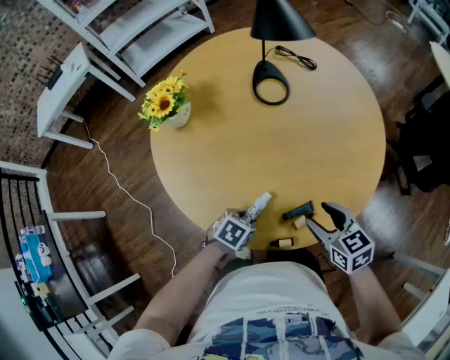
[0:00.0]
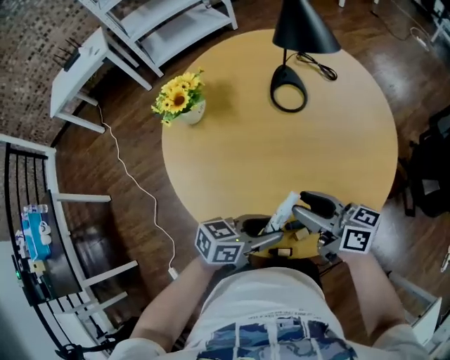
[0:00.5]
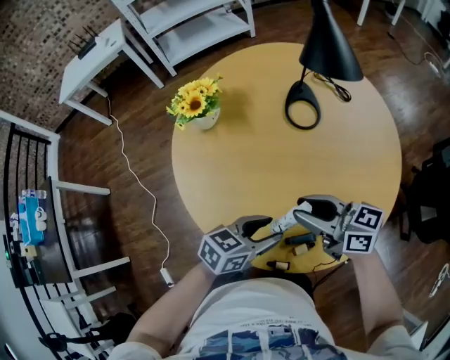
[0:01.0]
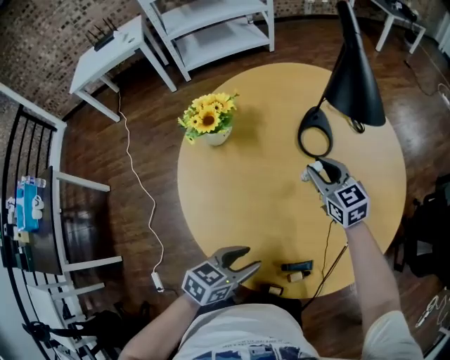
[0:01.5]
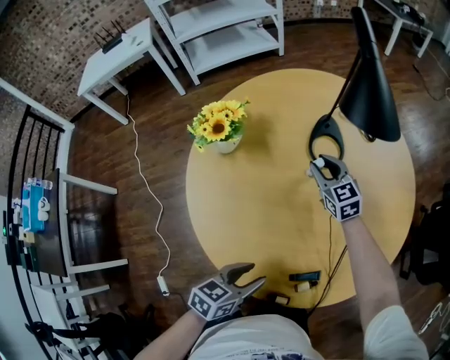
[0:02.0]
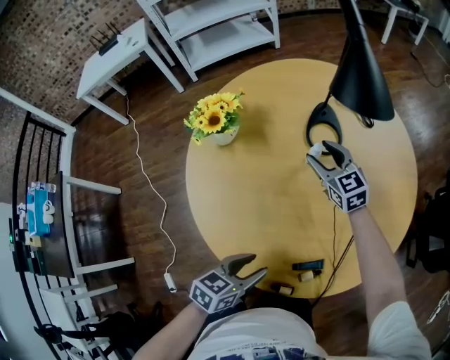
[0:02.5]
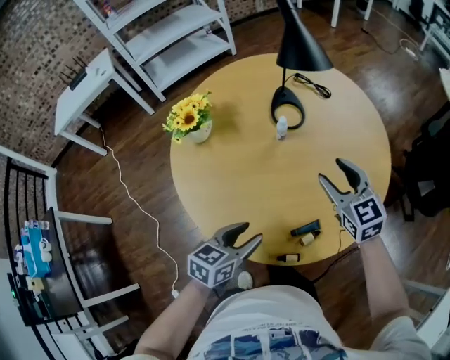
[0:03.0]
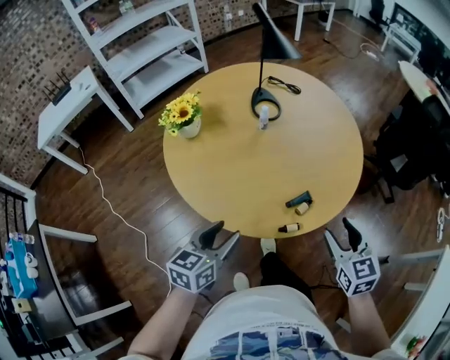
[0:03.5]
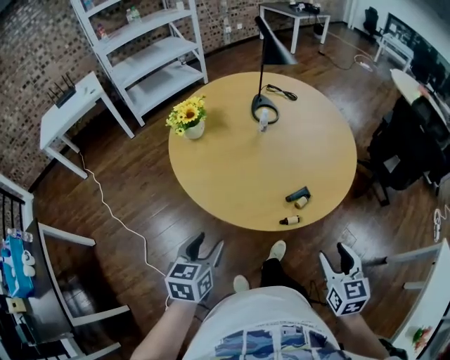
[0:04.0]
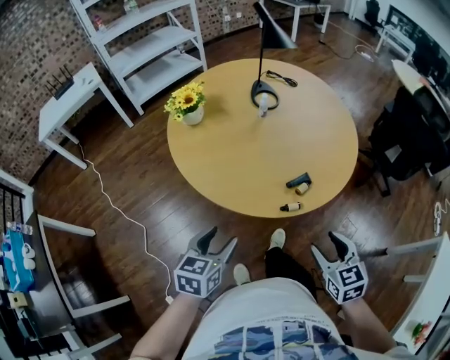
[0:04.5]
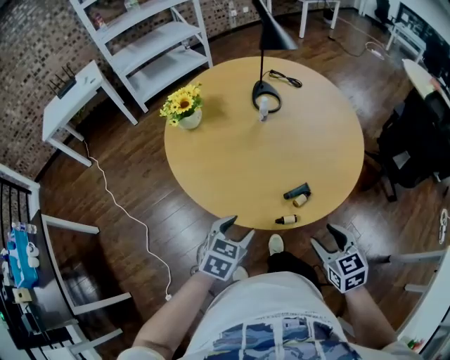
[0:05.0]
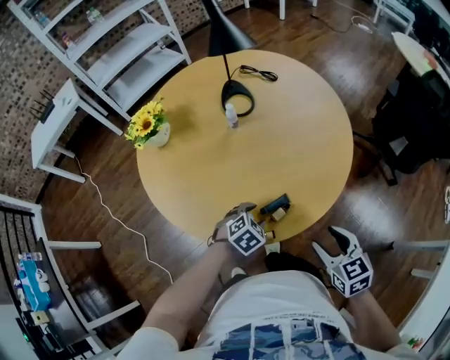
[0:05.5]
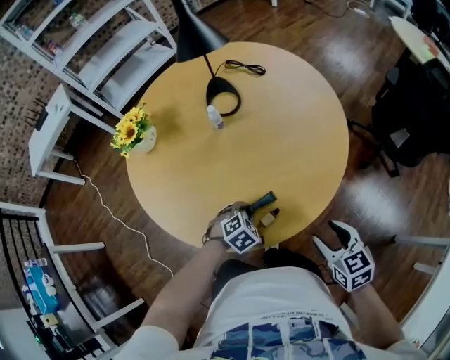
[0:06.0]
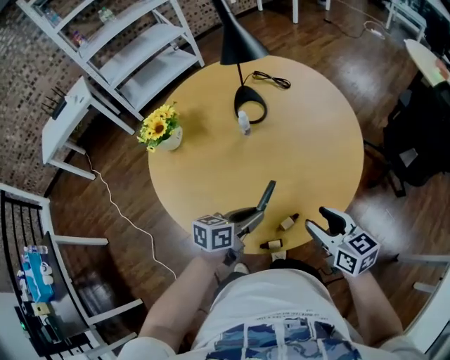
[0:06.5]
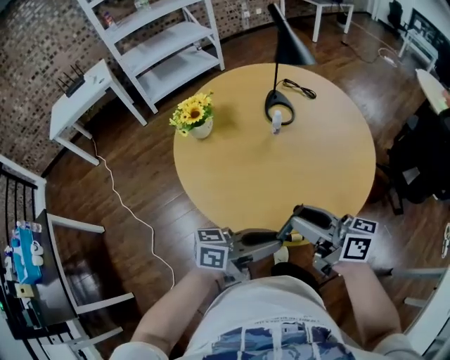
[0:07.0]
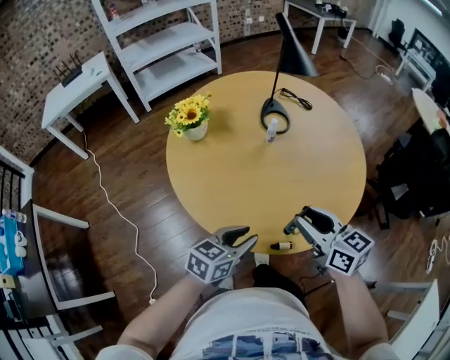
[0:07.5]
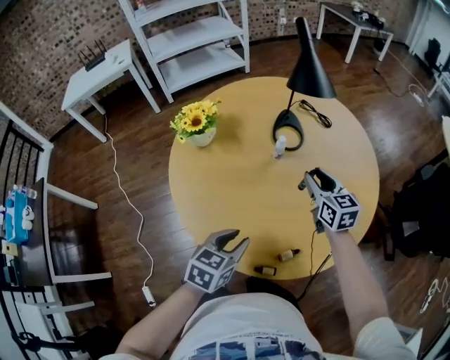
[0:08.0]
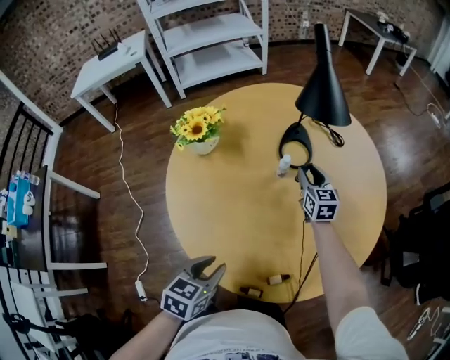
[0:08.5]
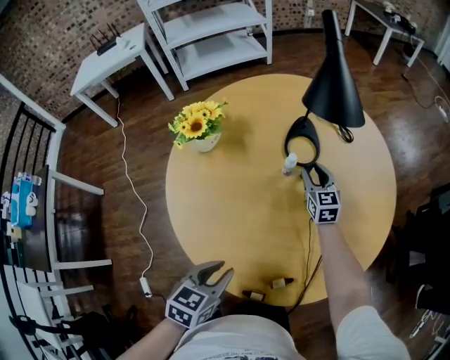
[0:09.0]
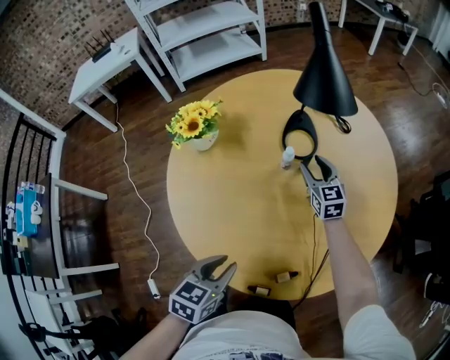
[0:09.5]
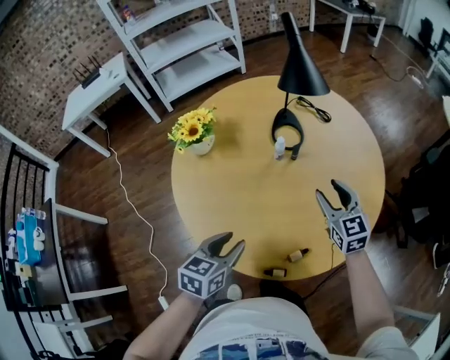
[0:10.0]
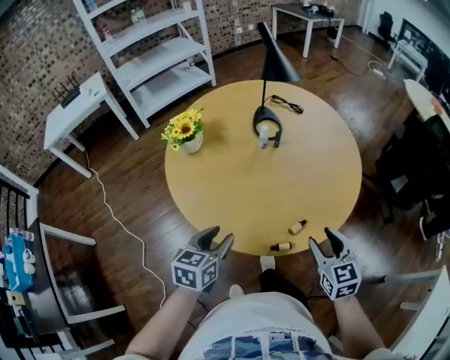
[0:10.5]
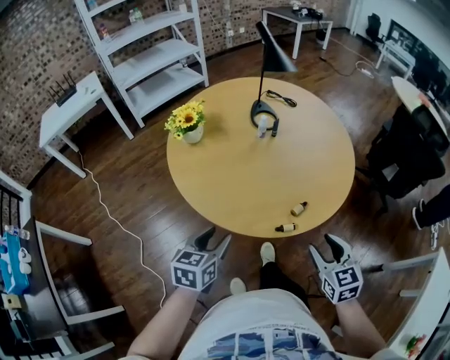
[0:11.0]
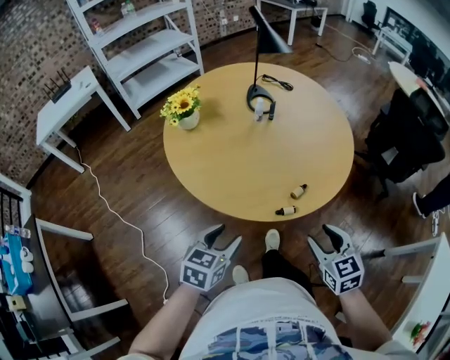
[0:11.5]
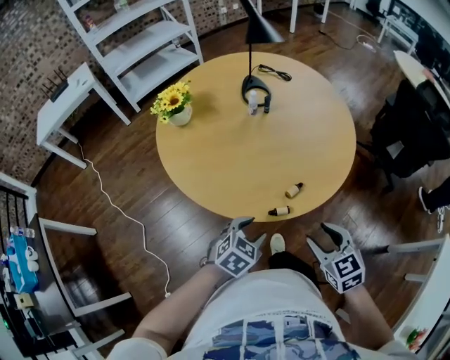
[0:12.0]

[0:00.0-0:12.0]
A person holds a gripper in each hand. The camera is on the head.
0:00.0 to 0:02.0: The left gripper moves upward, roughly 15 cm, and points its fingers about 30 degrees further upward. Meanwhile the right gripper travels upward and back again, roughly 10 cm each way, swivels approximately 30 degrees, and closes up.
0:02.0 to 0:04.0: The left gripper heads backward and to the left, covering approximately 30 cm, and changes its angle by some 20 degrees, while the right gripper heads backward, covering roughly 60 cm, swivels about 40 degrees, and opens.
0:04.0 to 0:06.0: The right gripper travels forward, to the right and downward by approximately 30 cm, and turns by approximately 20 degrees, while the left gripper moves to the right, forward and downward, approximately 40 cm, rolls clockwise, seen from behind, by roughly 50 degrees, and closes.
0:06.0 to 0:08.0: The right gripper ends up some 35 cm from where it was, rotates some 20 degrees, and closes up. Meanwhile the left gripper travels upward by approximately 20 cm, and twists approximately 50 degrees counterclockwise, seen from behind.
0:08.0 to 0:10.0: The right gripper reaches approximately 15 cm forward, then returns, and opens its fingers.
0:10.0 to 0:12.0: The right gripper moves backward, roughly 40 cm. The left gripper travels backward and to the right by roughly 20 cm, and swivels about 40 degrees.

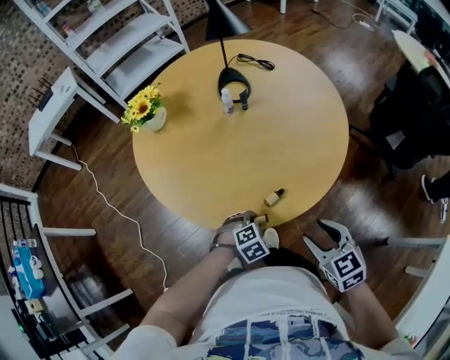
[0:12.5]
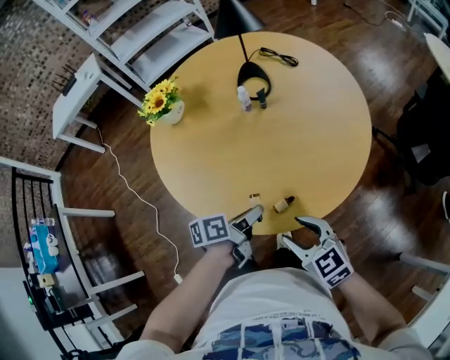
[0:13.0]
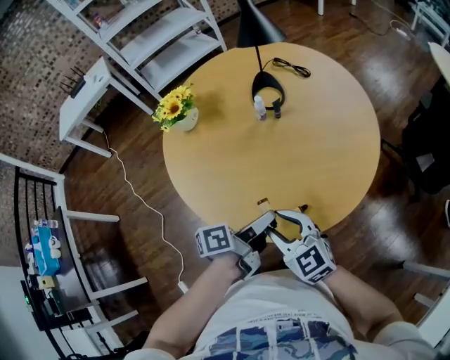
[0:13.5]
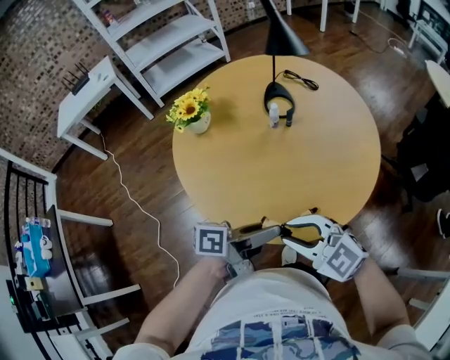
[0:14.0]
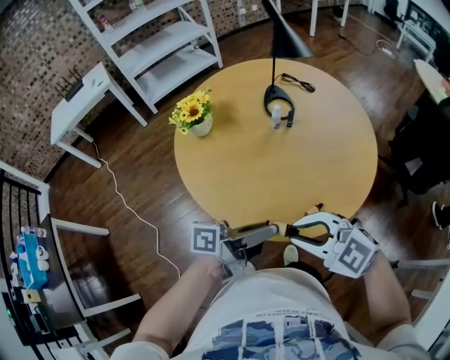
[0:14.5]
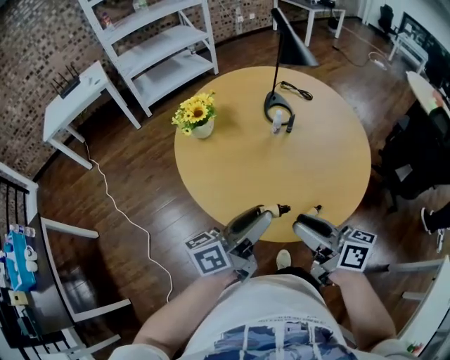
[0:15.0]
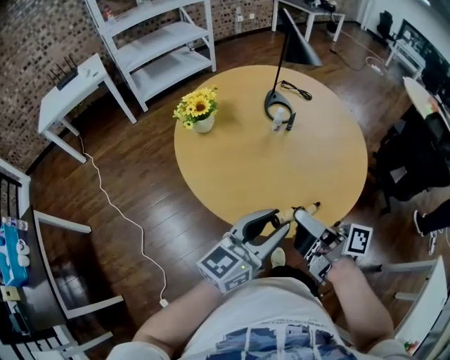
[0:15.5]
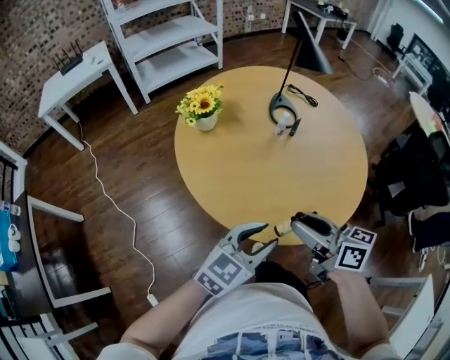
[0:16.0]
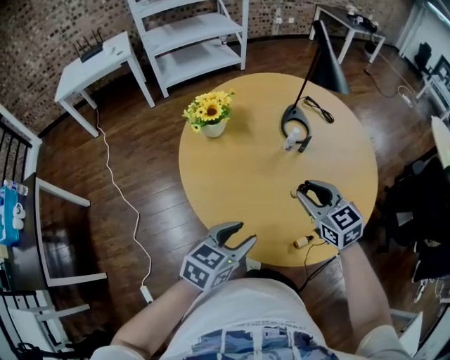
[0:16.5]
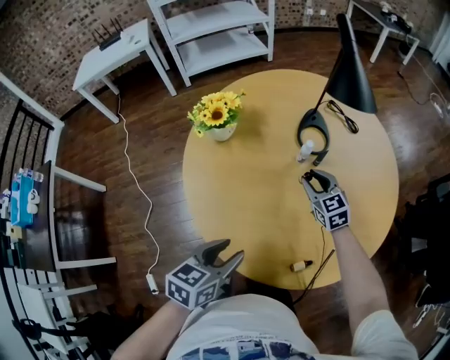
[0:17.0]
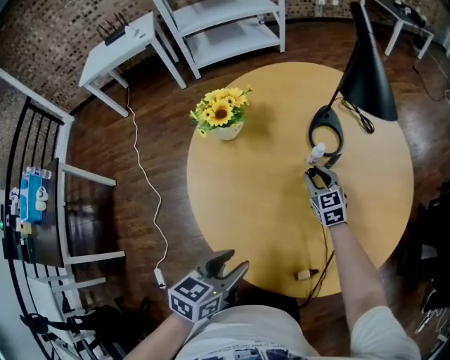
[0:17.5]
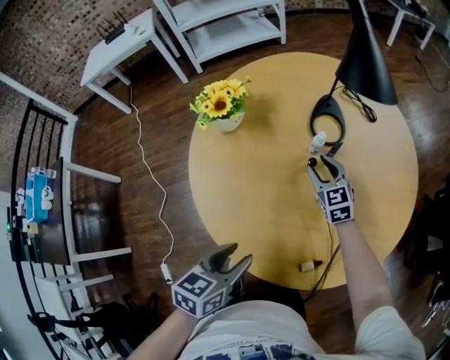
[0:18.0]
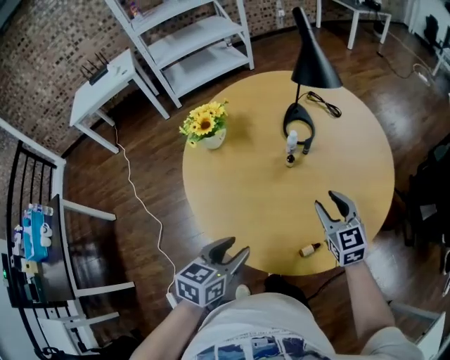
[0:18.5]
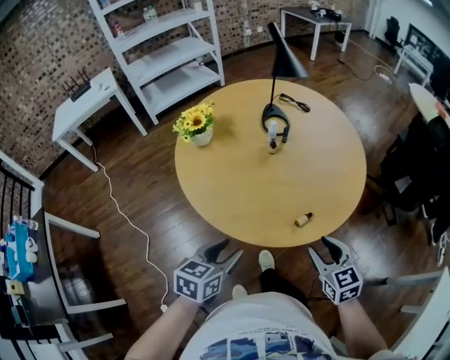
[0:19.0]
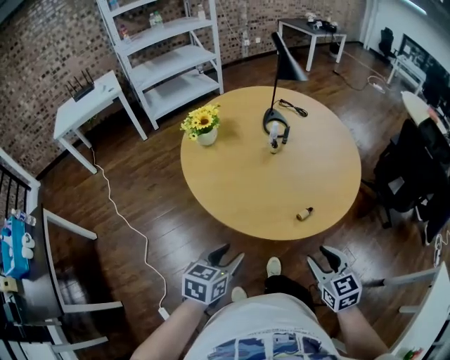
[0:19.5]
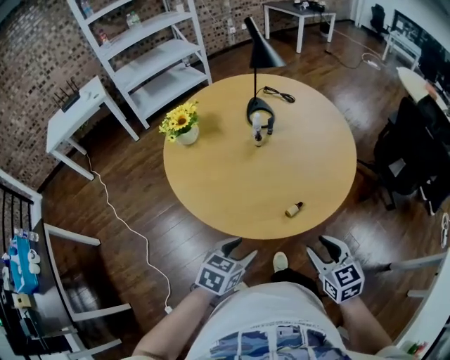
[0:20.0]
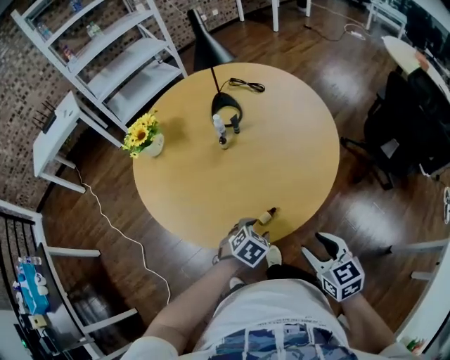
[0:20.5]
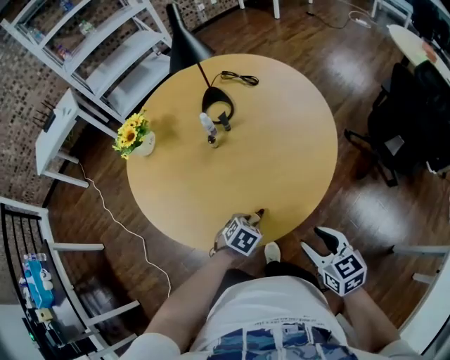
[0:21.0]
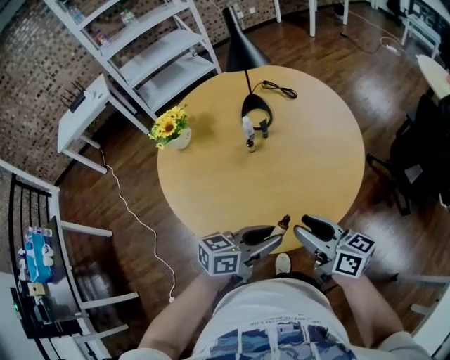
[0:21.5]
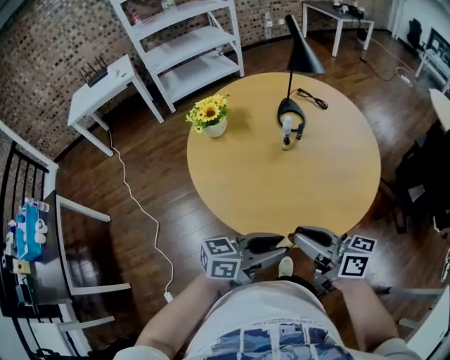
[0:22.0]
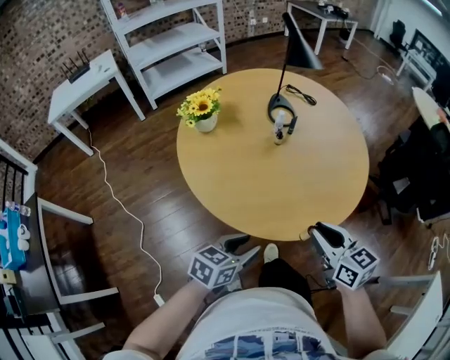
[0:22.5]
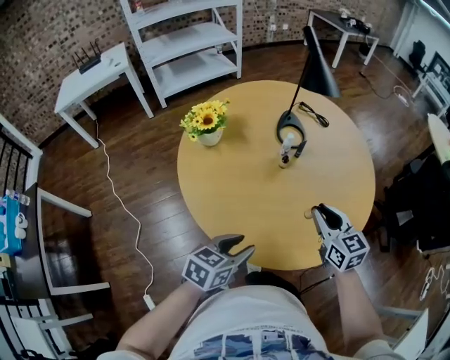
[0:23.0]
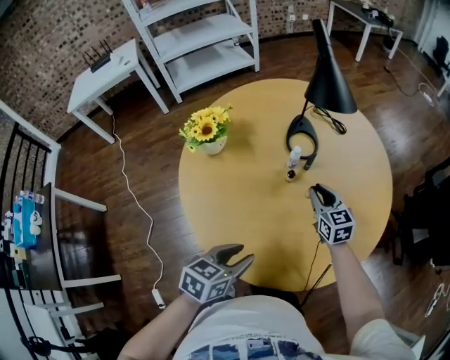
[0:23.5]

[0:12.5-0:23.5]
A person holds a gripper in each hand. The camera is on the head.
0:12.5 to 0:14.5: The left gripper heads upward, covering some 25 cm, and points its fingers some 80 degrees further upward; the right gripper shifts by about 25 cm, swivels about 50 degrees, and closes up.
0:14.5 to 0:16.0: The left gripper ends up some 5 cm from where it was, and rolls clockwise, seen from behind, by some 60 degrees, while the right gripper twists roughly 60 degrees clockwise, seen from behind.
0:16.0 to 0:18.0: The left gripper is displaced forward and downward by approximately 15 cm, and rotates some 50 degrees; the right gripper travels forward and downward by approximately 40 cm, and twists about 40 degrees counterclockwise, seen from behind.
0:18.0 to 0:20.0: The right gripper heads backward, covering roughly 50 cm, and swivels roughly 20 degrees. The left gripper travels backward by about 20 cm, and turns by roughly 30 degrees.
0:20.0 to 0:21.5: The right gripper heads forward, covering roughly 15 cm, travels to the right and back again, some 15 cm each way, and turns by roughly 40 degrees. The left gripper goes some 25 cm to the right and forward, reaches about 15 cm downward, then returns, changes its angle by roughly 30 degrees, and closes.
0:21.5 to 0:23.5: The right gripper shifts by roughly 35 cm, changes its angle by approximately 40 degrees, and closes its fingers. The left gripper shifts by about 25 cm, and swivels roughly 30 degrees.

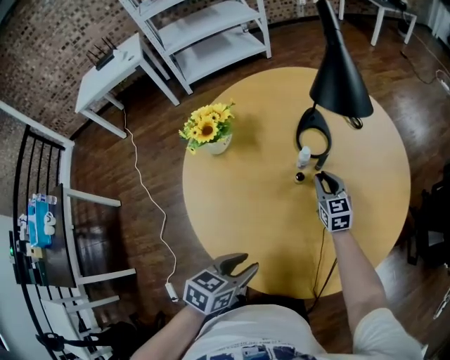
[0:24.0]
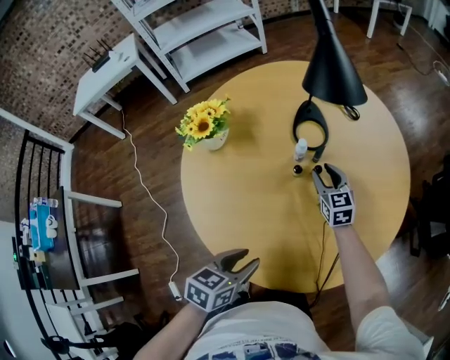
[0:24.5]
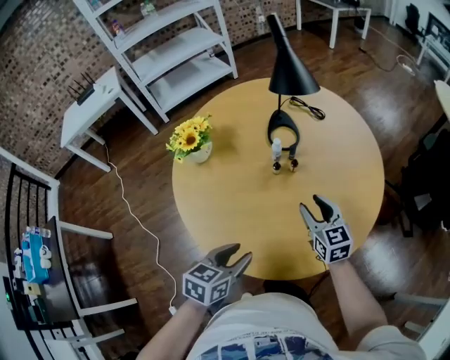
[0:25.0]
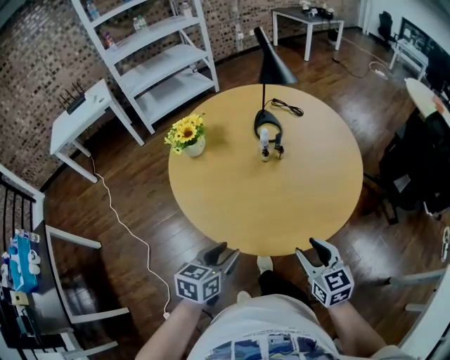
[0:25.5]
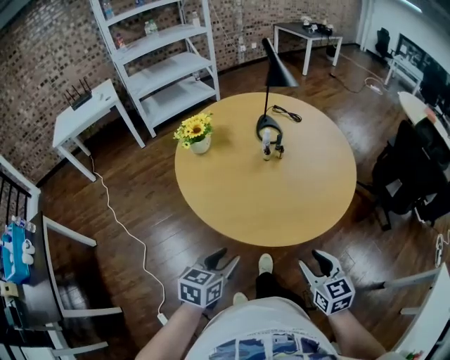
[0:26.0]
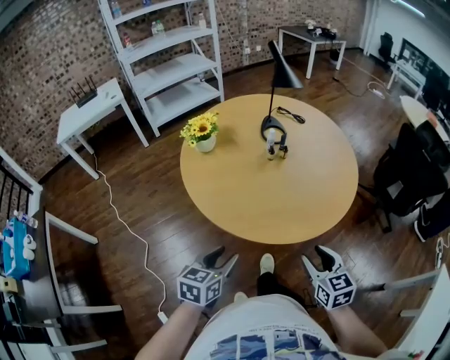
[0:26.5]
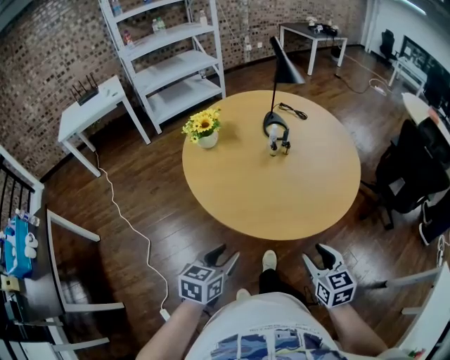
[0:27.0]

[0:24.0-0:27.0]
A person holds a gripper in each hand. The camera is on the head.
0:24.0 to 0:25.5: The right gripper heads backward, covering about 50 cm, and opens up. The left gripper goes roughly 15 cm backward.
0:25.5 to 0:27.0: Both grippers move backward, some 10 cm.
